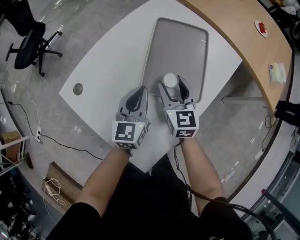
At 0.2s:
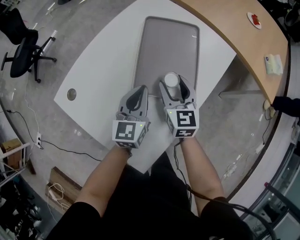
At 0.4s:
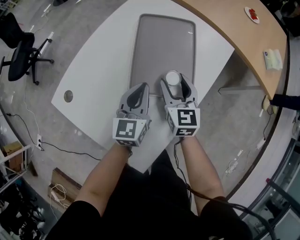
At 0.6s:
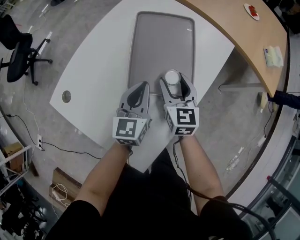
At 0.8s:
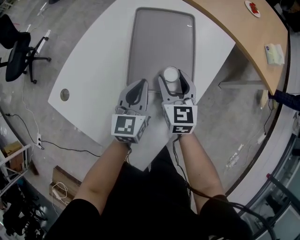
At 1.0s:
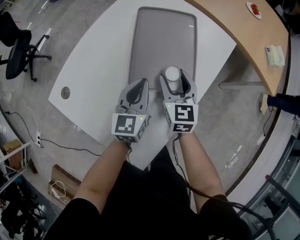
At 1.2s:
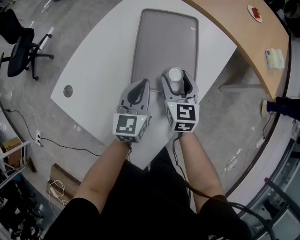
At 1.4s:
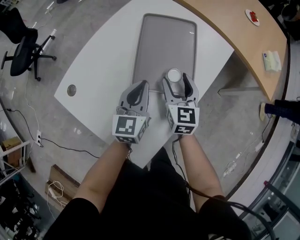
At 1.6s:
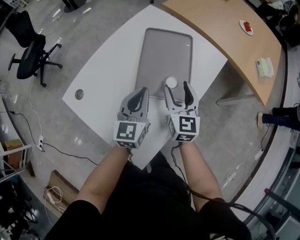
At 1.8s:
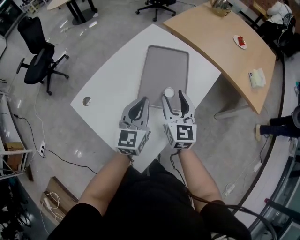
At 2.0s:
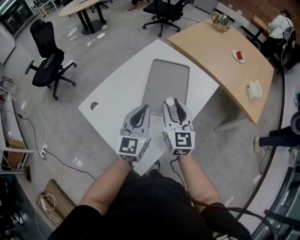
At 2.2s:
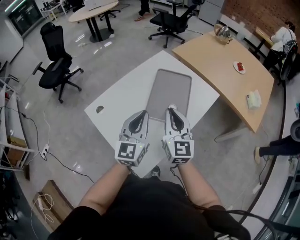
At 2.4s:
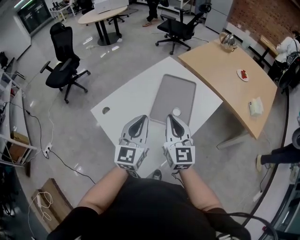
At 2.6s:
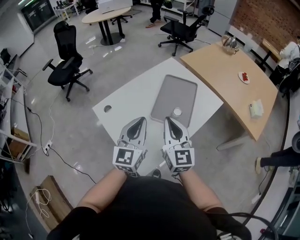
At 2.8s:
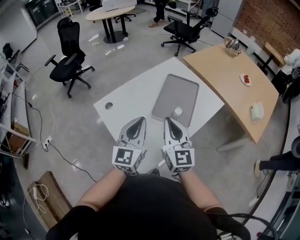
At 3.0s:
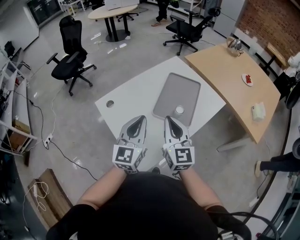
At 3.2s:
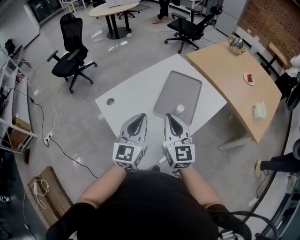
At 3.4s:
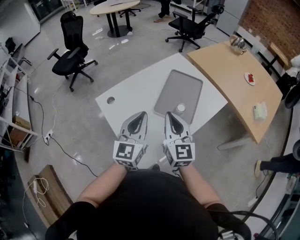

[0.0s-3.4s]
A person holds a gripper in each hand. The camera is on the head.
0.0s to 1.6s: Both grippers travel together to the right and upward, roughly 10 cm.
1.6s to 3.4s: Both grippers travel together upward, backward and to the left, roughly 25 cm. The right gripper swivels roughly 20 degrees, and closes up.

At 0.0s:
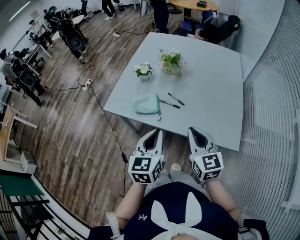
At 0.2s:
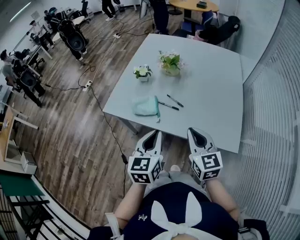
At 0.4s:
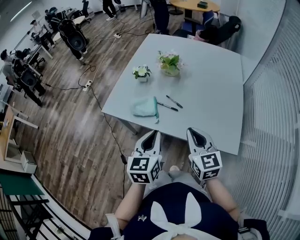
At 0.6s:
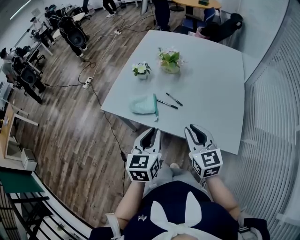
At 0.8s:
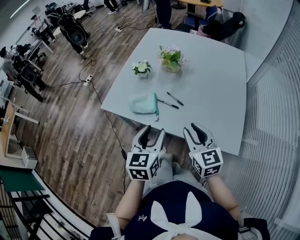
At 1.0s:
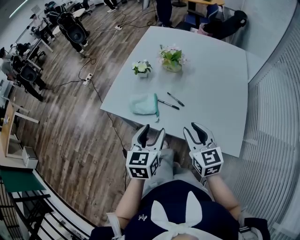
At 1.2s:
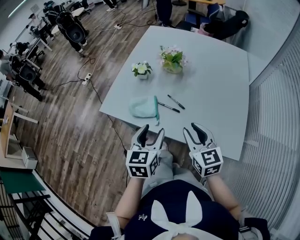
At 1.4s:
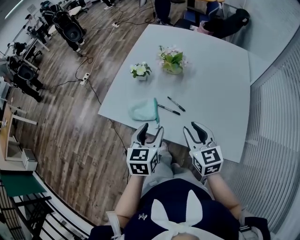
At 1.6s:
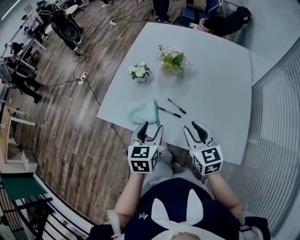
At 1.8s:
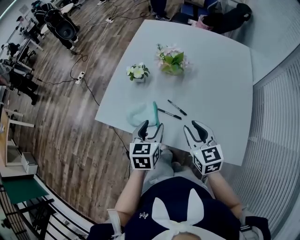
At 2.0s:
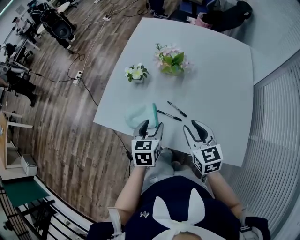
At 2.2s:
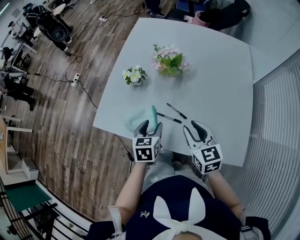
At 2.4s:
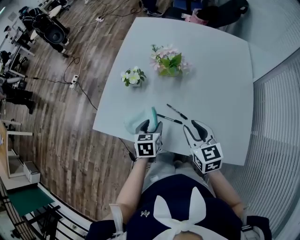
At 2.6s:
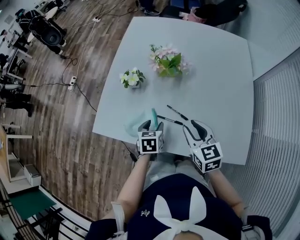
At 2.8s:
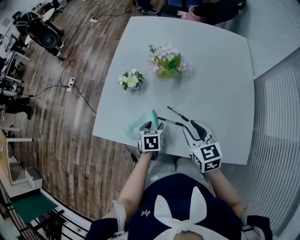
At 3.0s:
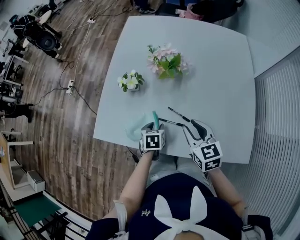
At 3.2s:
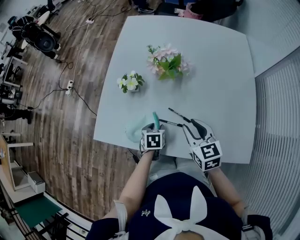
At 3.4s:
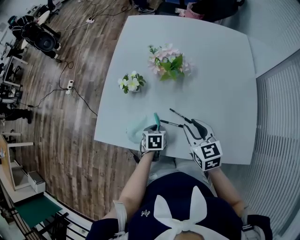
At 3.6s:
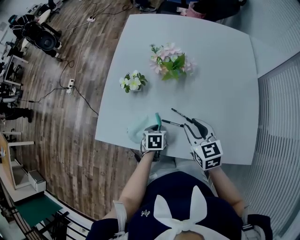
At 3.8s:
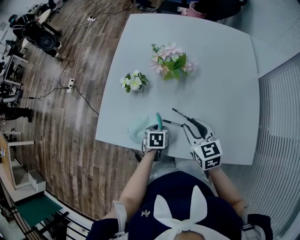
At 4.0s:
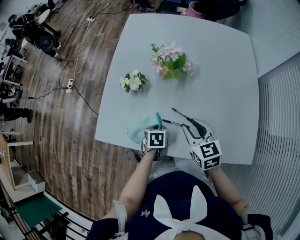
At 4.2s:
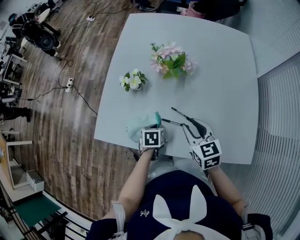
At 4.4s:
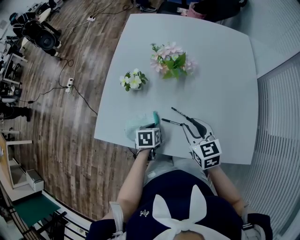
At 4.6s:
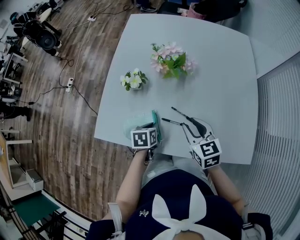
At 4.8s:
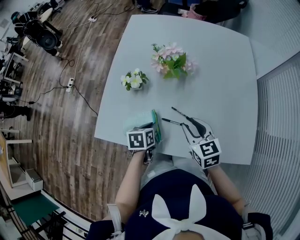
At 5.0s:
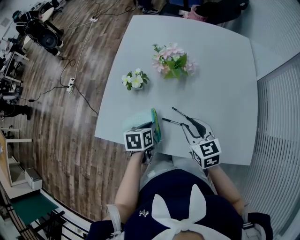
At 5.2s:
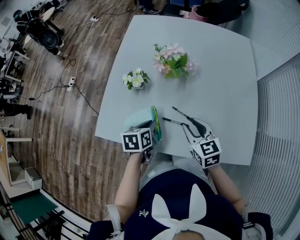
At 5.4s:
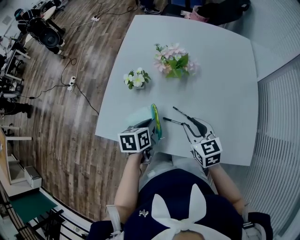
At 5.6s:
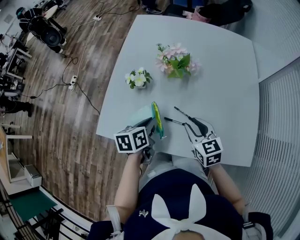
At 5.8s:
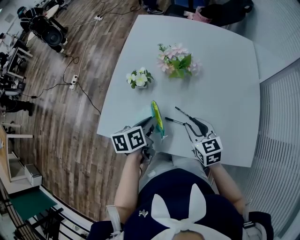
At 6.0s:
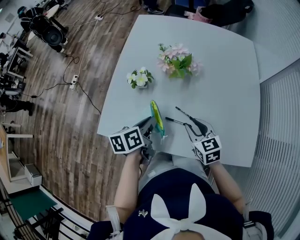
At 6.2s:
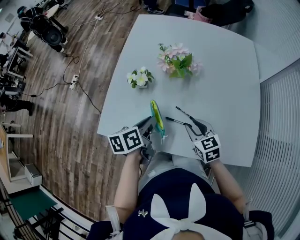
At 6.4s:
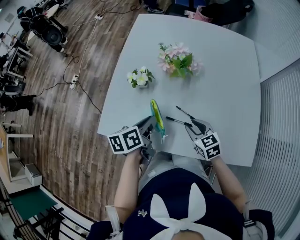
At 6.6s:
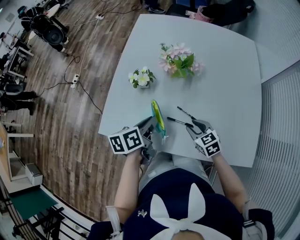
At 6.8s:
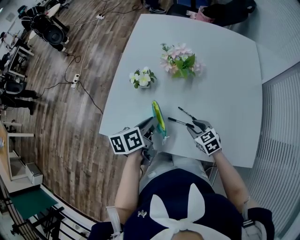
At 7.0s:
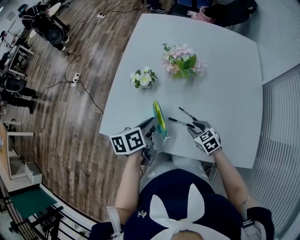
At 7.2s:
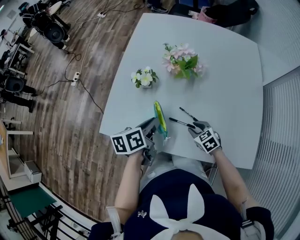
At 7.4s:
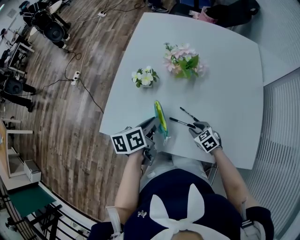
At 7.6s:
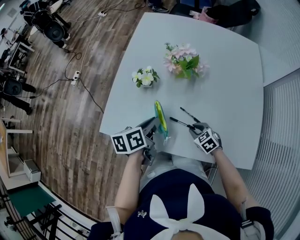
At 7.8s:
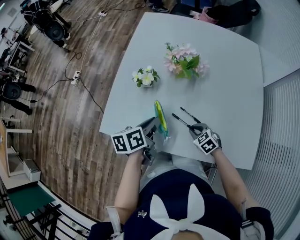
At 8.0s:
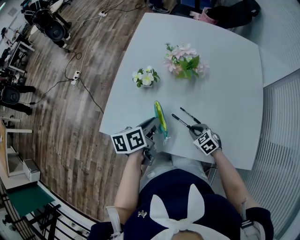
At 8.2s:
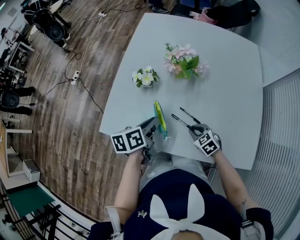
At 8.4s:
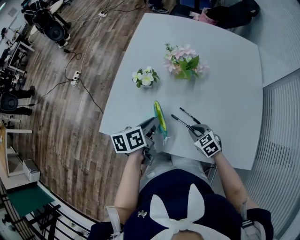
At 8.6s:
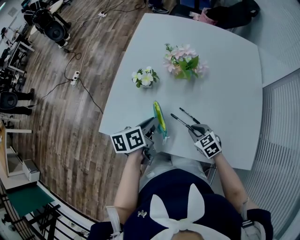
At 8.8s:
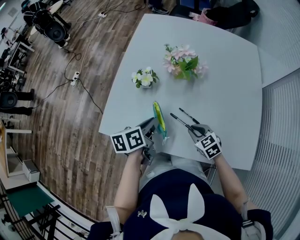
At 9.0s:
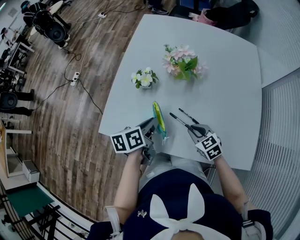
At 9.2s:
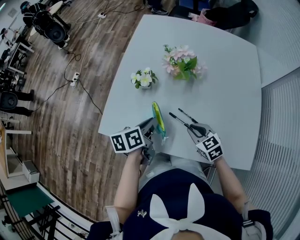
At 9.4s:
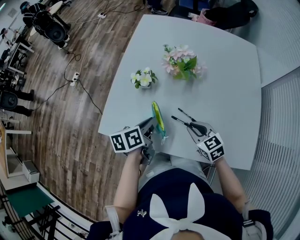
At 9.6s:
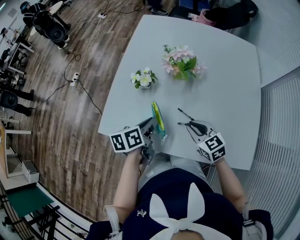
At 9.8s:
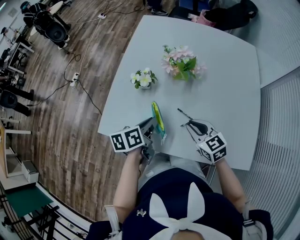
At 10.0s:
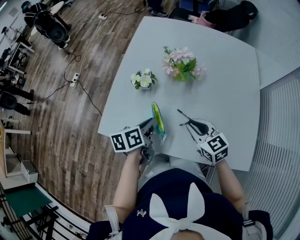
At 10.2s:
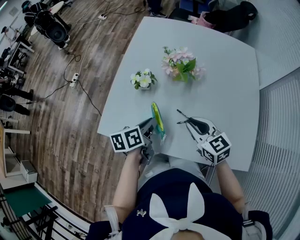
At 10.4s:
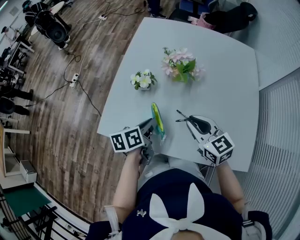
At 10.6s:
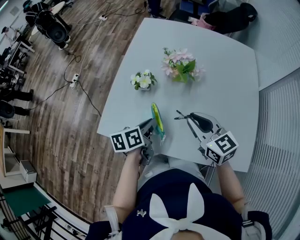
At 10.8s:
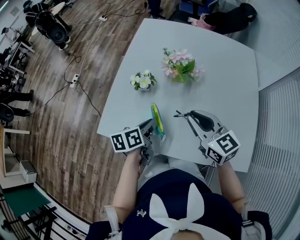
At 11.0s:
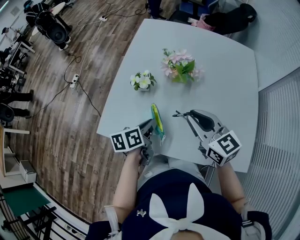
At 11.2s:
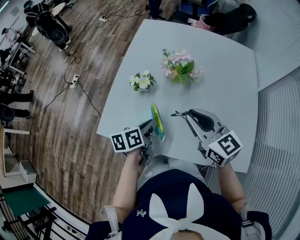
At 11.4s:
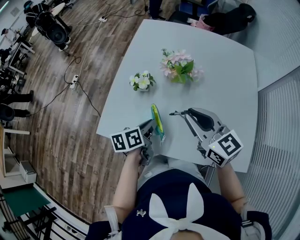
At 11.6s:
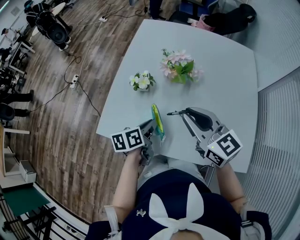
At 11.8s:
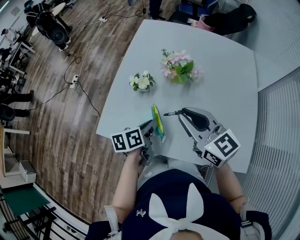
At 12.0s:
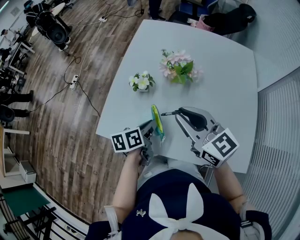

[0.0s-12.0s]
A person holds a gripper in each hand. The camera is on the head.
0.0s to 1.6s: The two grippers go roughly 15 cm forward and downward. The right gripper opens. Meanwhile the left gripper opens.
1.6s to 3.0s: The left gripper is displaced downward and forward by roughly 25 cm, and rotates about 30 degrees; the right gripper moves forward and downward, some 10 cm.
3.0s to 4.4s: The left gripper closes up.
4.4s to 6.0s: The left gripper shifts roughly 15 cm upward, and changes its angle by roughly 30 degrees.
6.0s to 7.6s: The right gripper moves downward, approximately 15 cm, and swivels roughly 30 degrees.
7.6s to 9.0s: The right gripper travels upward by roughly 10 cm.
9.0s to 10.4s: The right gripper travels upward by some 15 cm, and rotates roughly 20 degrees.
10.4s to 12.0s: The right gripper heads upward, covering roughly 10 cm.

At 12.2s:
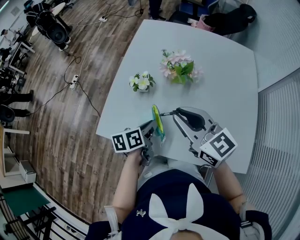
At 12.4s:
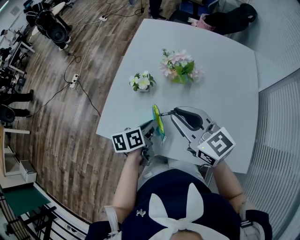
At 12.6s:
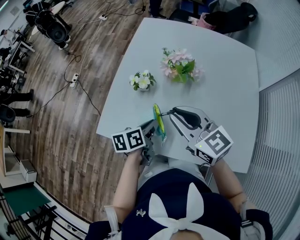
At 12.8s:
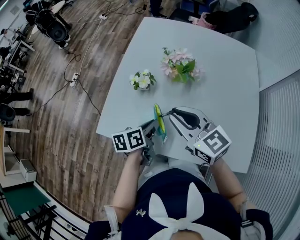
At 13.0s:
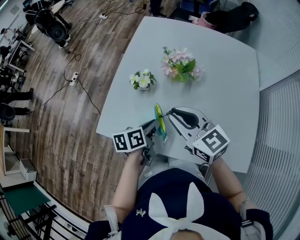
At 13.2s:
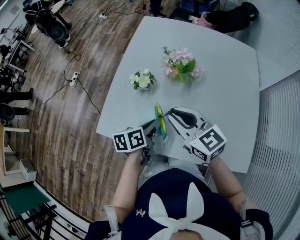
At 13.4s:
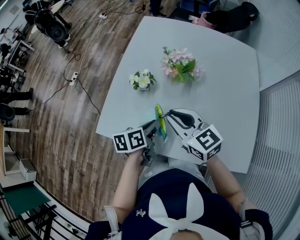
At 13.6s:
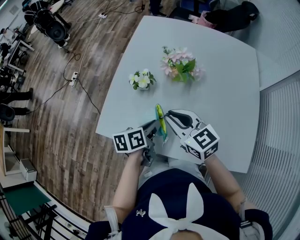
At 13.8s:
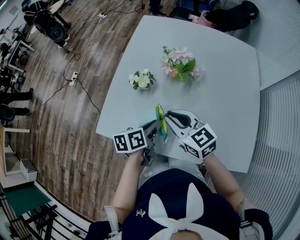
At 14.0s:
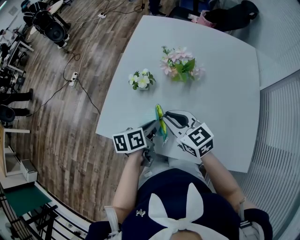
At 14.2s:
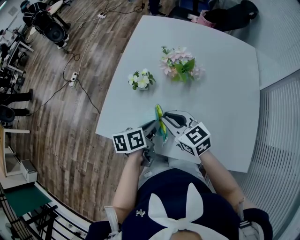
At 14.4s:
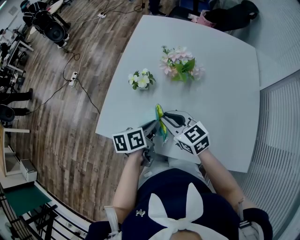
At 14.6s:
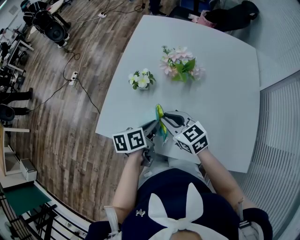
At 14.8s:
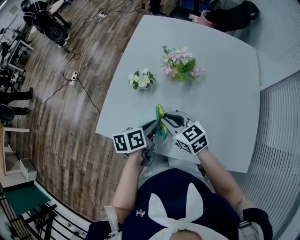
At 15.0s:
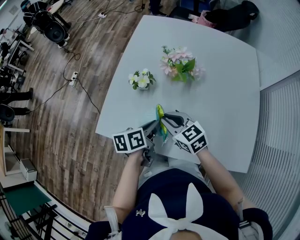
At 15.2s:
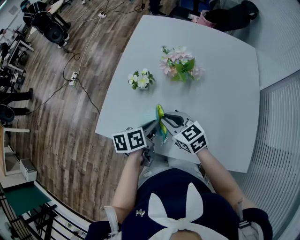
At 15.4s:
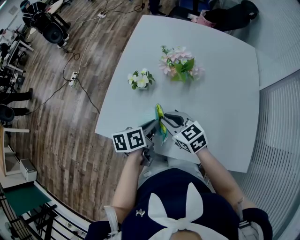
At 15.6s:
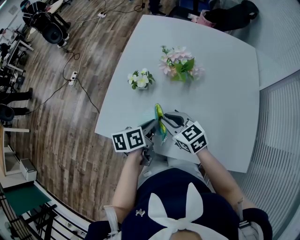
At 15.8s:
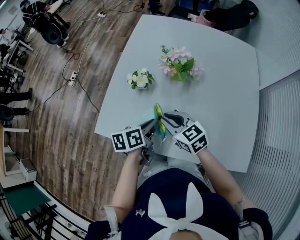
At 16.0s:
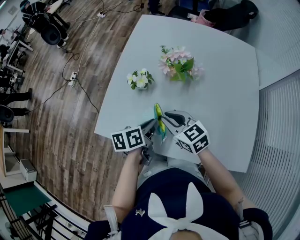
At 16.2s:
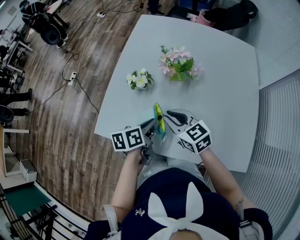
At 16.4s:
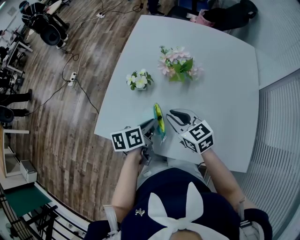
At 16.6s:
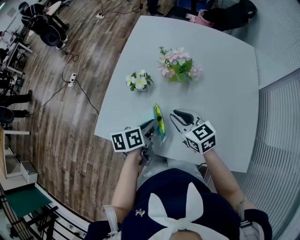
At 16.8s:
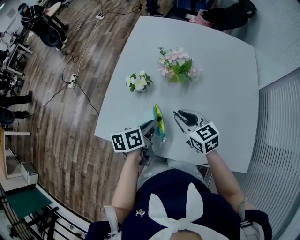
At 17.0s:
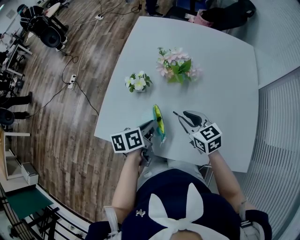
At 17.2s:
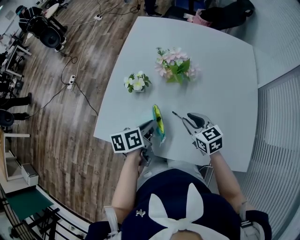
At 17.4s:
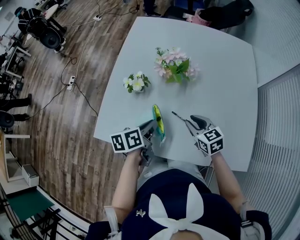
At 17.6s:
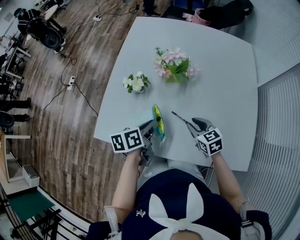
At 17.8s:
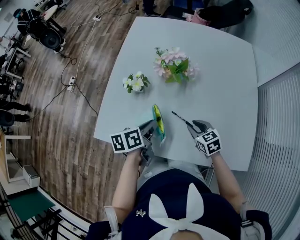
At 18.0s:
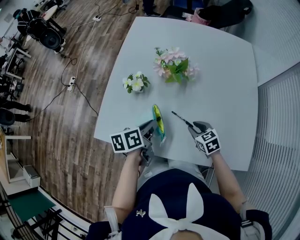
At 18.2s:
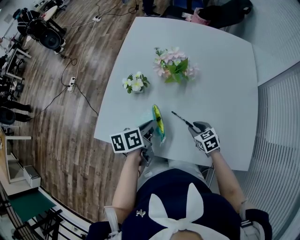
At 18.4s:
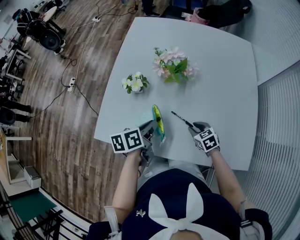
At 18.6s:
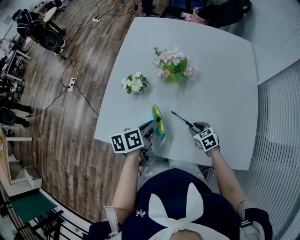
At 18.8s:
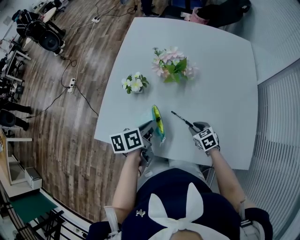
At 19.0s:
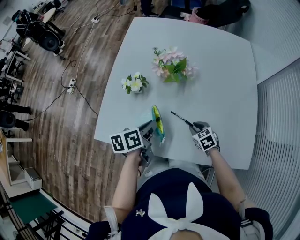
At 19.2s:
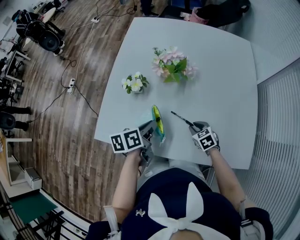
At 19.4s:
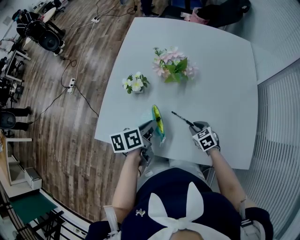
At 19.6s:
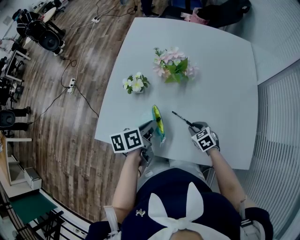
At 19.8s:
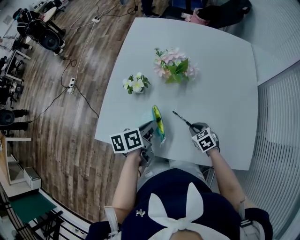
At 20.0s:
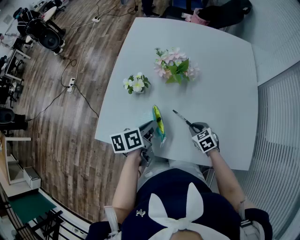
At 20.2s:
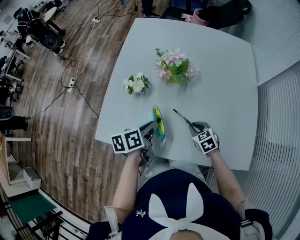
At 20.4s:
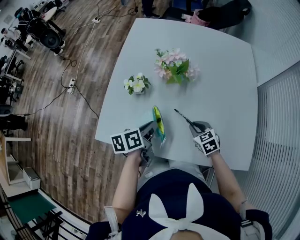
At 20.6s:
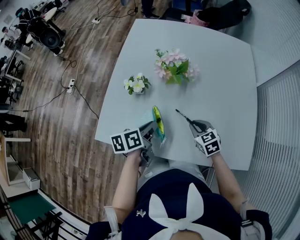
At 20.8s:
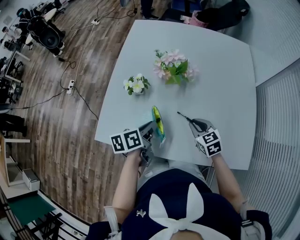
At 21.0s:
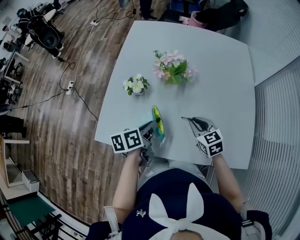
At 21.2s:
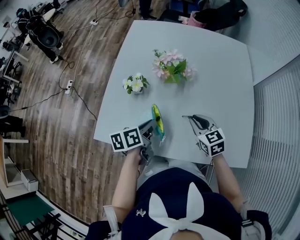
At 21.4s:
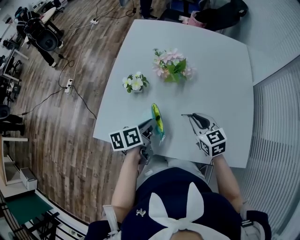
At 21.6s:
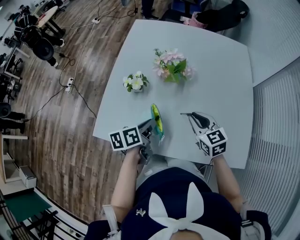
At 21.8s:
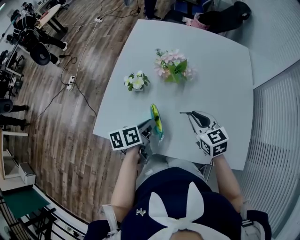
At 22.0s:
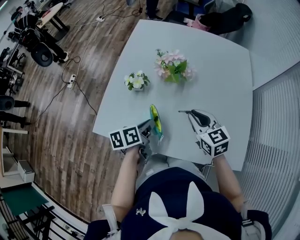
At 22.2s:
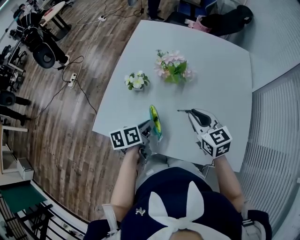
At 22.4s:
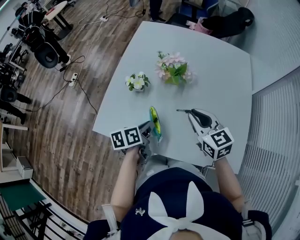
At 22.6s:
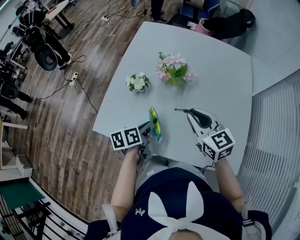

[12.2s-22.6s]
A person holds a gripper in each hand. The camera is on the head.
12.2s to 13.6s: The right gripper travels downward by approximately 10 cm.
13.6s to 15.2s: The right gripper shifts approximately 5 cm downward.
15.2s to 16.6s: The right gripper ends up some 5 cm from where it was.
16.6s to 18.2s: The right gripper is displaced downward and to the right by approximately 20 cm, and swivels about 20 degrees.
18.2s to 19.6s: The grippers make only small movements.
19.6s to 21.2s: The right gripper goes roughly 15 cm upward, and rotates approximately 20 degrees.
21.2s to 22.6s: The right gripper travels upward by approximately 15 cm.
